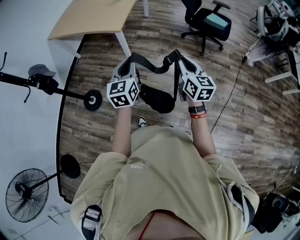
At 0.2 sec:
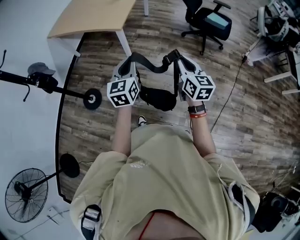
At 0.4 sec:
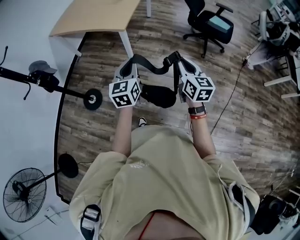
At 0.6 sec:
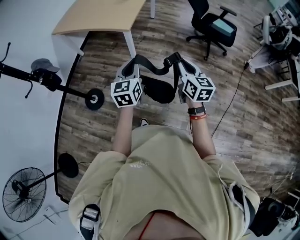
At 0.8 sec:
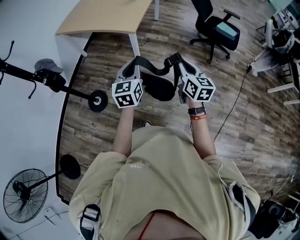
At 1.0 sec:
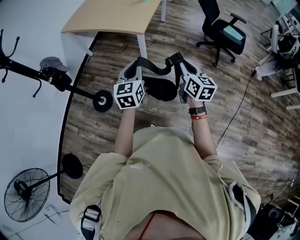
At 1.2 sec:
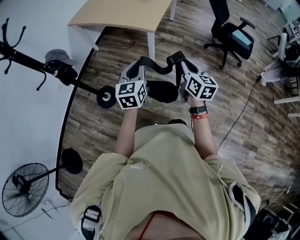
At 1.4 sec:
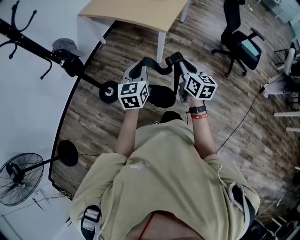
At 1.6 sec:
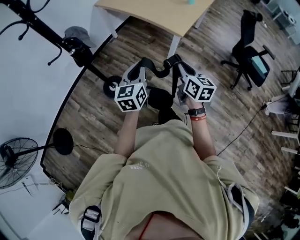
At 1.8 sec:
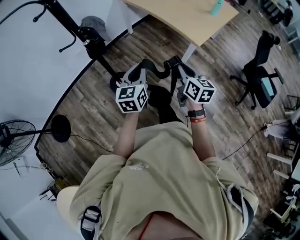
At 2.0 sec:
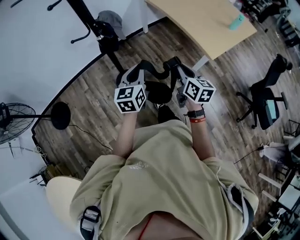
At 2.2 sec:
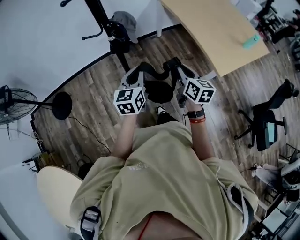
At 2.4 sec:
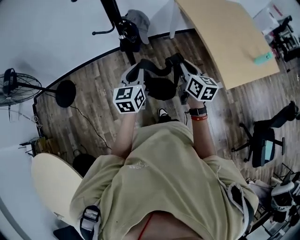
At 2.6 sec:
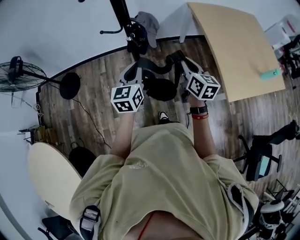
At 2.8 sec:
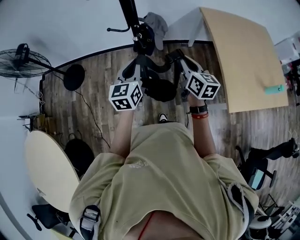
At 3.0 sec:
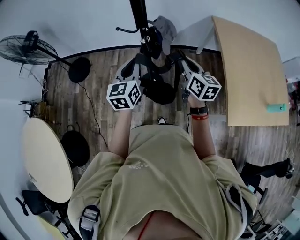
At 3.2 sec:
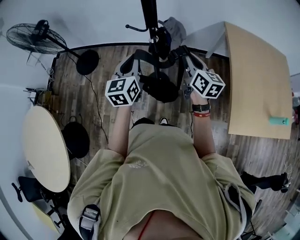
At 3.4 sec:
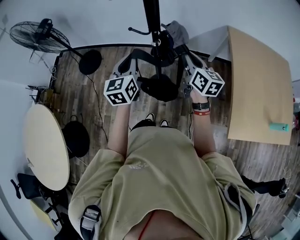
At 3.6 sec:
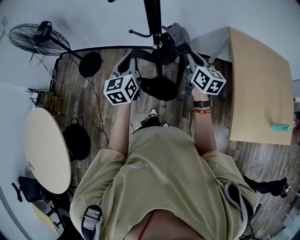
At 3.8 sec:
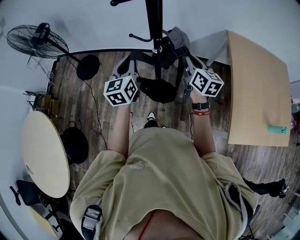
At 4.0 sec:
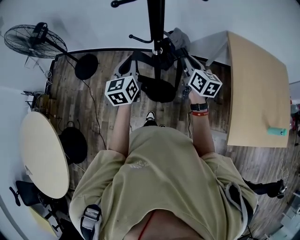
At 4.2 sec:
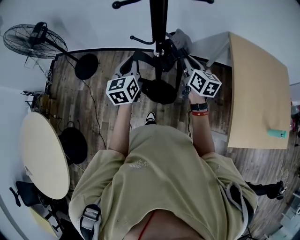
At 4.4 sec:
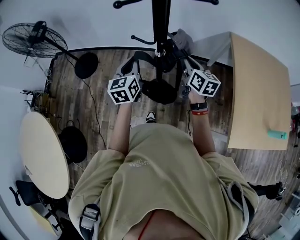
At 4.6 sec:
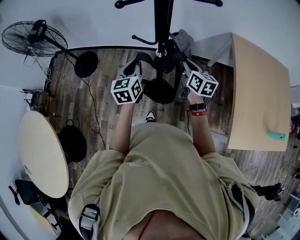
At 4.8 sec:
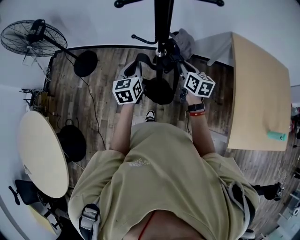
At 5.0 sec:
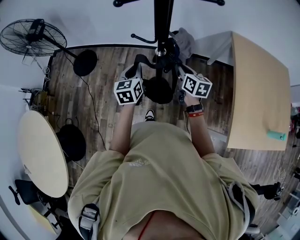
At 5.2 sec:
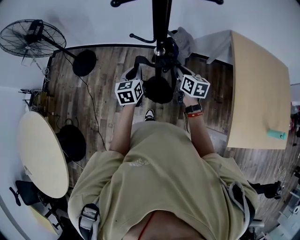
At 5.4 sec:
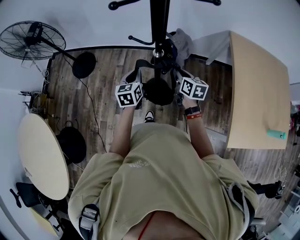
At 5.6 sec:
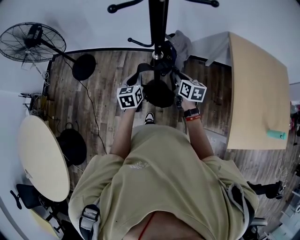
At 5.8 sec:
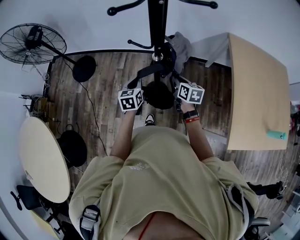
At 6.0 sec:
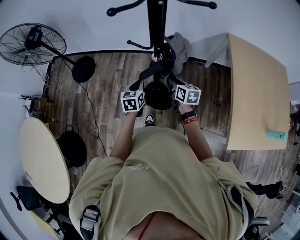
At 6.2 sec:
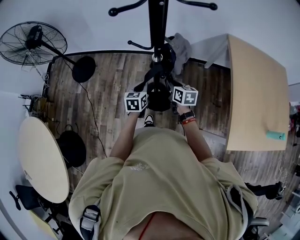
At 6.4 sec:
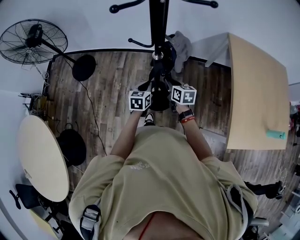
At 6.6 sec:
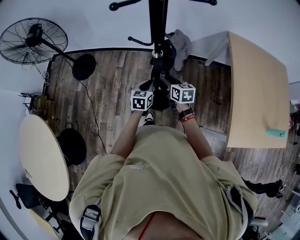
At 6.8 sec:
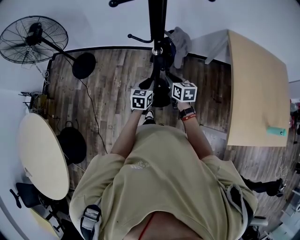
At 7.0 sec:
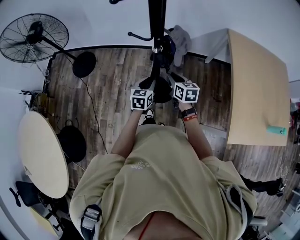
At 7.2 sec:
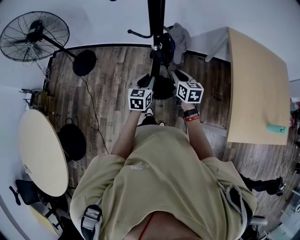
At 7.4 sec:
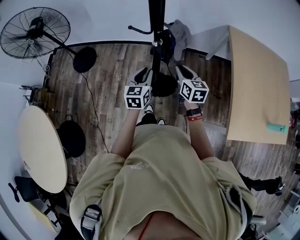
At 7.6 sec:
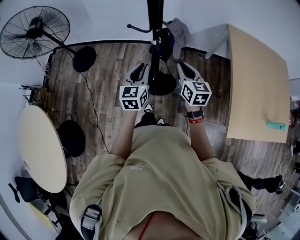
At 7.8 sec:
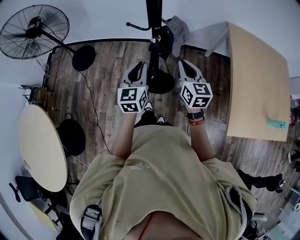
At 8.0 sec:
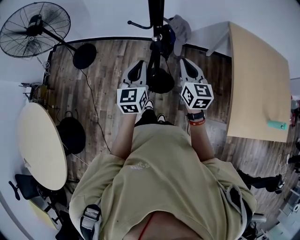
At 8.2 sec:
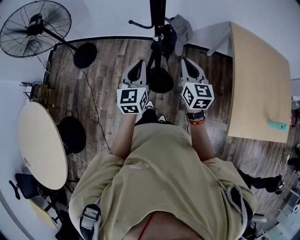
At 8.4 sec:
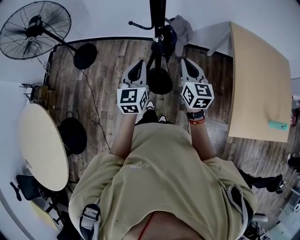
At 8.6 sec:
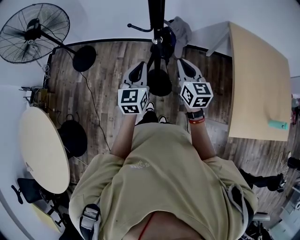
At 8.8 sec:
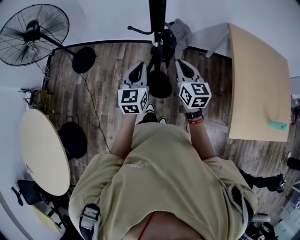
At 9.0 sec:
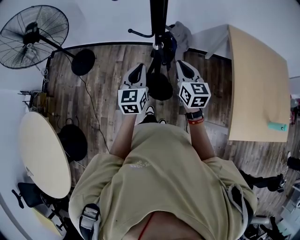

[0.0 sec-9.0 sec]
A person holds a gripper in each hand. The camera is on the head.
0.0 sec to 1.6 sec: The right gripper goes about 40 cm to the left and forward, and swivels roughly 20 degrees, while the left gripper moves to the left, roughly 35 cm, and rotates roughly 20 degrees.
1.6 sec to 3.0 sec: The left gripper moves some 35 cm, and rotates some 60 degrees. The right gripper moves some 50 cm, and turns by roughly 60 degrees.
3.0 sec to 4.4 sec: The right gripper goes roughly 15 cm forward; the left gripper travels forward and to the left by some 15 cm.
4.4 sec to 6.0 sec: The grippers both shift downward by about 15 cm.
6.0 sec to 7.6 sec: The grippers both shift upward and backward by approximately 15 cm. The right gripper changes its angle by roughly 20 degrees.
7.6 sec to 9.0 sec: The right gripper changes place by about 5 cm.

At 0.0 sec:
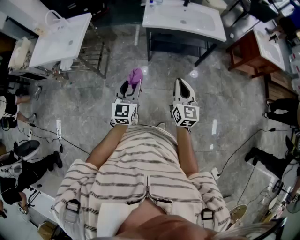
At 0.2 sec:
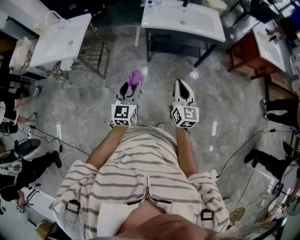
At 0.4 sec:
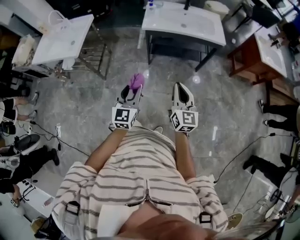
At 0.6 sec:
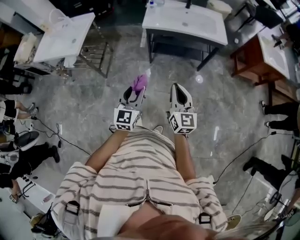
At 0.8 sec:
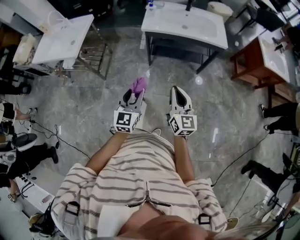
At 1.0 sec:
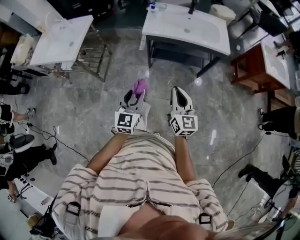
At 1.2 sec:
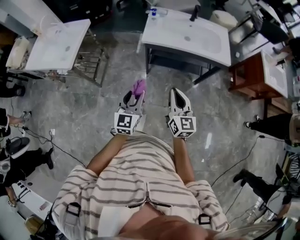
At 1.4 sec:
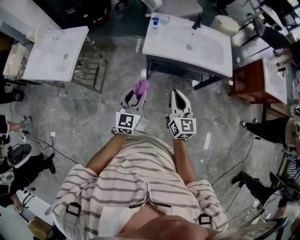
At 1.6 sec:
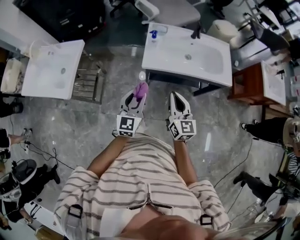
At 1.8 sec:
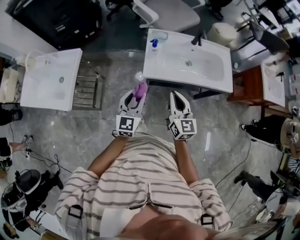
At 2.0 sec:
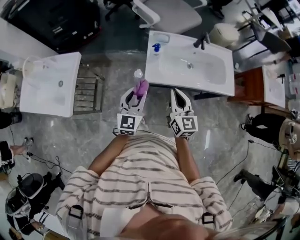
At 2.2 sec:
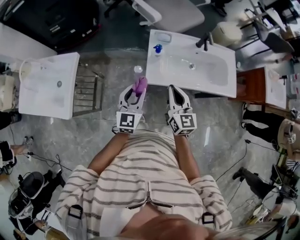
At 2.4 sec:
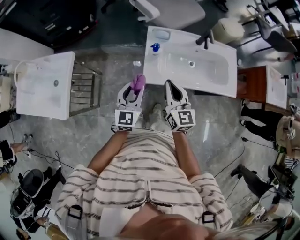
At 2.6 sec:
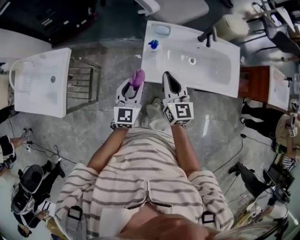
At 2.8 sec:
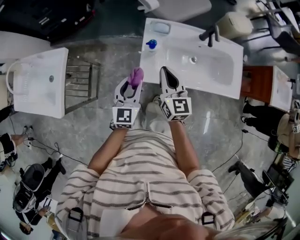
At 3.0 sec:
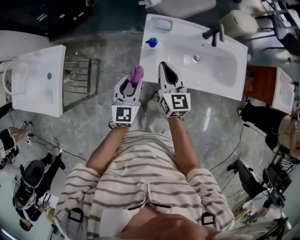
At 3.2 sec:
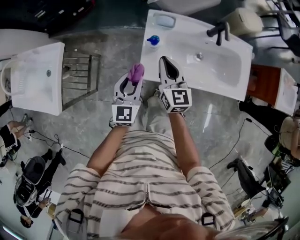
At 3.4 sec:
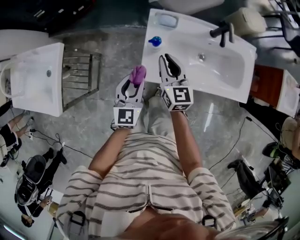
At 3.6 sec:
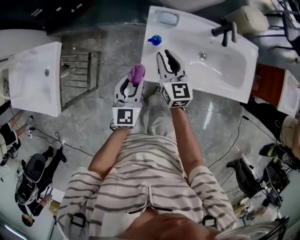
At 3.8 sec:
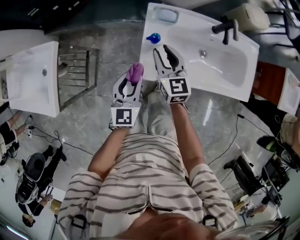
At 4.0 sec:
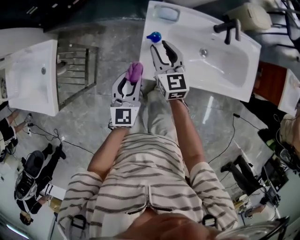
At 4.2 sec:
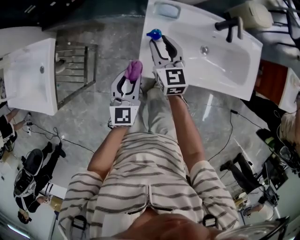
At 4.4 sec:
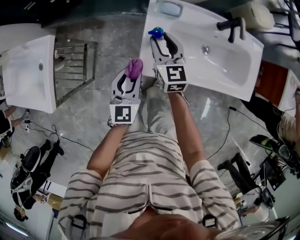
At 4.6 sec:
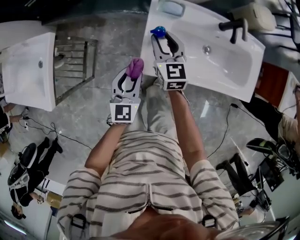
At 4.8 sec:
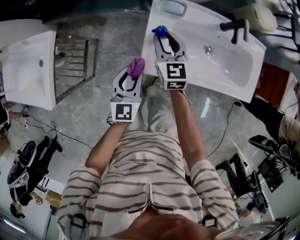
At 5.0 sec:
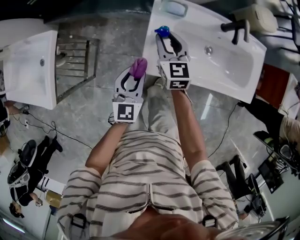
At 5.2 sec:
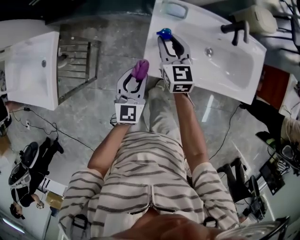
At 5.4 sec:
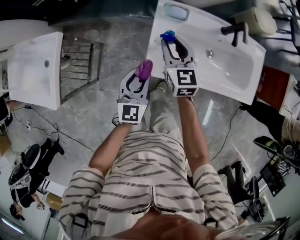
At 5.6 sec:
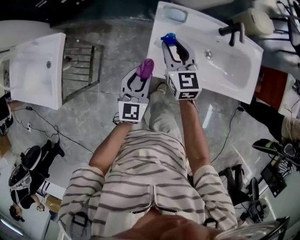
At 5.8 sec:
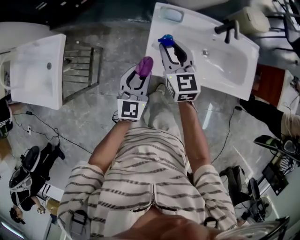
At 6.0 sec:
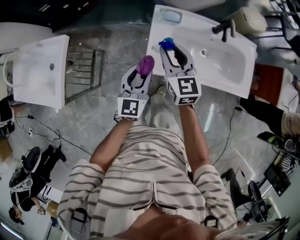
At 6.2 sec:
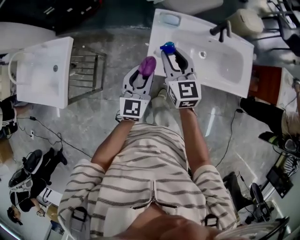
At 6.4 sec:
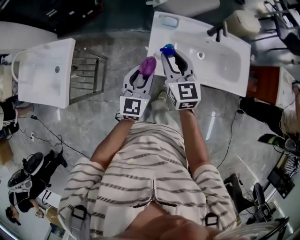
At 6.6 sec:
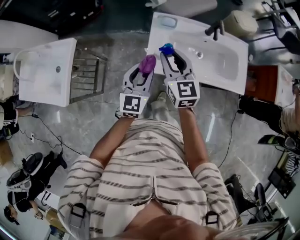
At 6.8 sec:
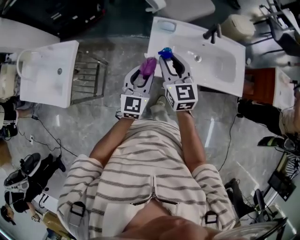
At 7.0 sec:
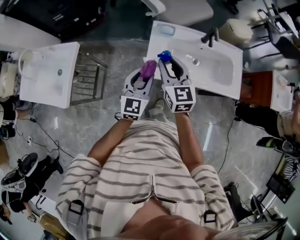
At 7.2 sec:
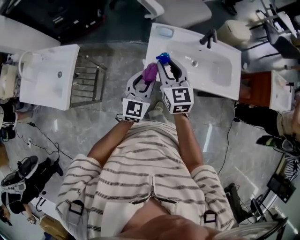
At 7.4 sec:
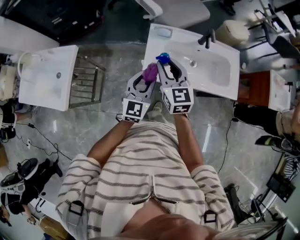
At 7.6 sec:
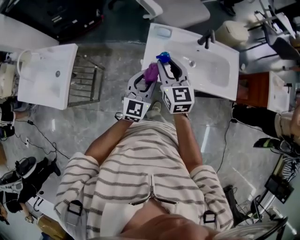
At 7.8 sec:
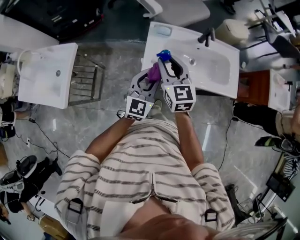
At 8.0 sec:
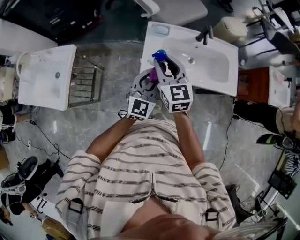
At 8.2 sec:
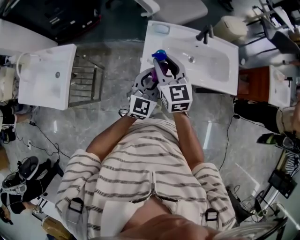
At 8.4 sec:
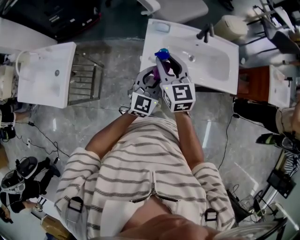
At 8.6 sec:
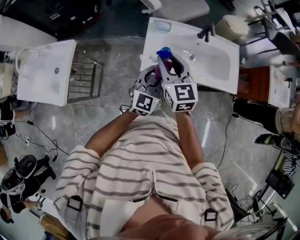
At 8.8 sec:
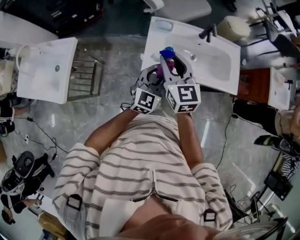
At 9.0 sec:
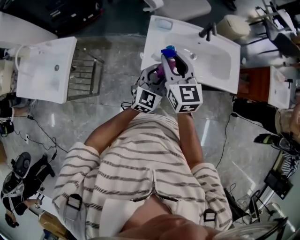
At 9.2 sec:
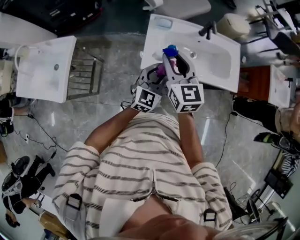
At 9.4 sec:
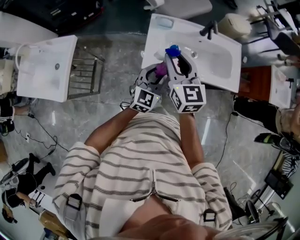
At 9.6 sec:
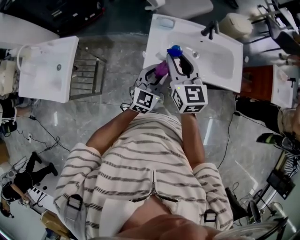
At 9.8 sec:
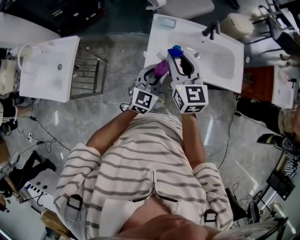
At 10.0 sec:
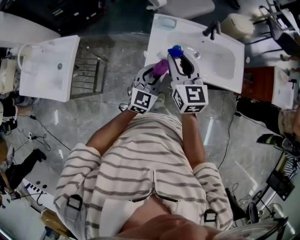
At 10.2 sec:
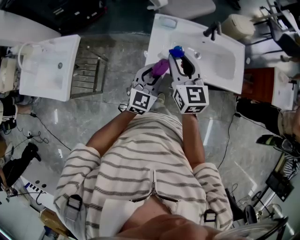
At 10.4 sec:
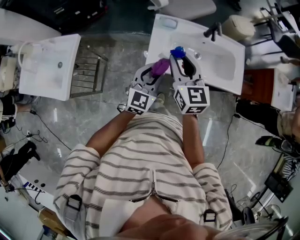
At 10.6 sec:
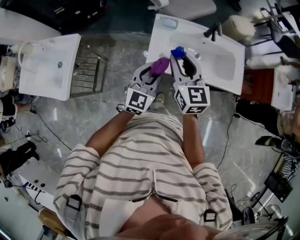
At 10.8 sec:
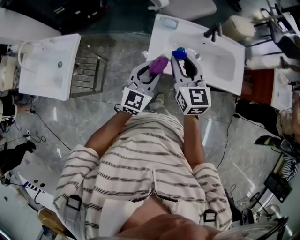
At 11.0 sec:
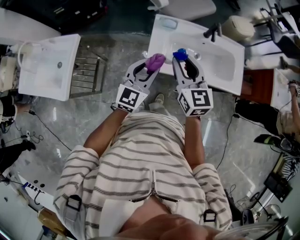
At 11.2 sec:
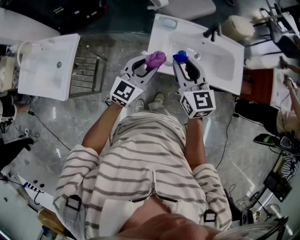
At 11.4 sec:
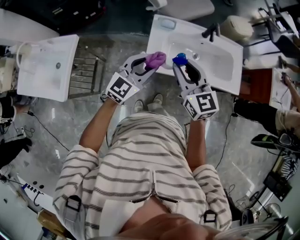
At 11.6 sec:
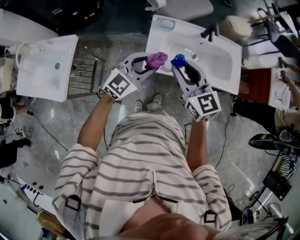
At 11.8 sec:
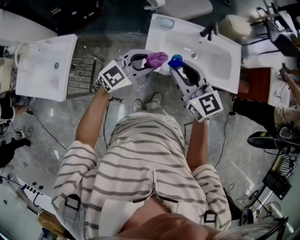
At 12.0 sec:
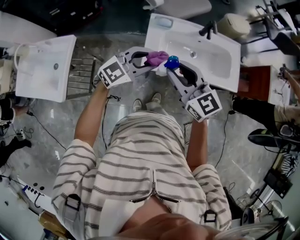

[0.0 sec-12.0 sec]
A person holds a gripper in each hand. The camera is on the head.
0.0 sec to 1.6 sec: The two grippers go approximately 30 cm forward.
1.6 sec to 3.0 sec: Both grippers travel together forward, approximately 25 cm.
3.0 sec to 4.4 sec: The left gripper travels downward by roughly 5 cm. Meanwhile the right gripper moves forward and downward, approximately 10 cm, and opens.
4.4 sec to 6.0 sec: The left gripper travels upward by roughly 5 cm, while the right gripper travels upward and backward by roughly 10 cm.
6.0 sec to 7.6 sec: The left gripper goes some 5 cm upward. The right gripper shifts approximately 10 cm upward and backward.
7.6 sec to 9.0 sec: The left gripper is displaced to the right by roughly 5 cm.
9.0 sec to 10.4 sec: There are only small adjustments of the grippers.
10.4 sec to 12.0 sec: The left gripper swivels about 40 degrees. The right gripper heads backward, covering approximately 5 cm, and turns by some 20 degrees.

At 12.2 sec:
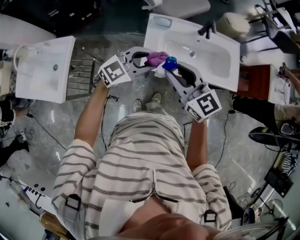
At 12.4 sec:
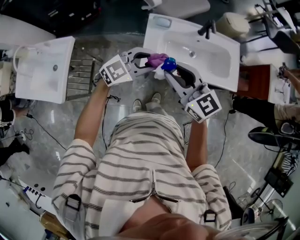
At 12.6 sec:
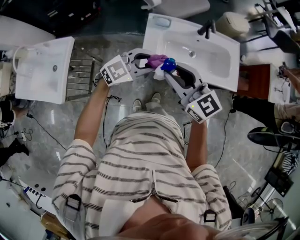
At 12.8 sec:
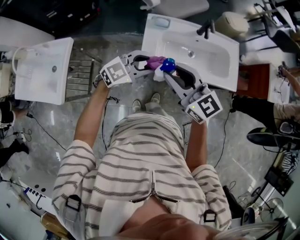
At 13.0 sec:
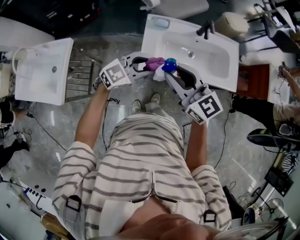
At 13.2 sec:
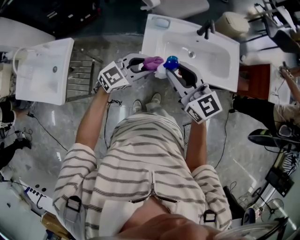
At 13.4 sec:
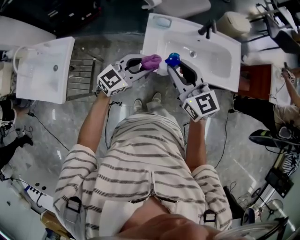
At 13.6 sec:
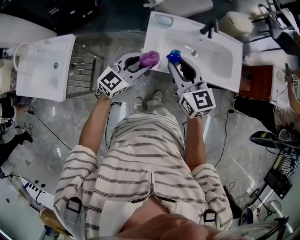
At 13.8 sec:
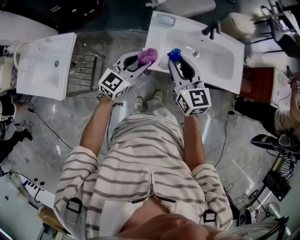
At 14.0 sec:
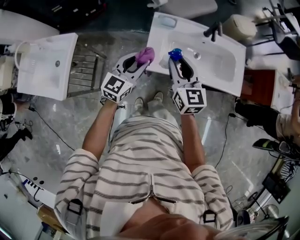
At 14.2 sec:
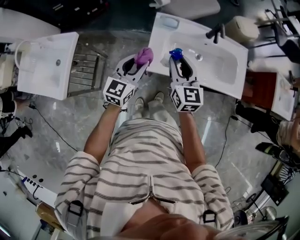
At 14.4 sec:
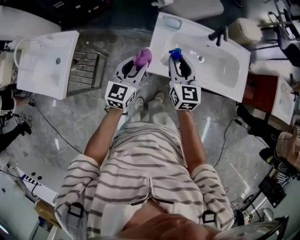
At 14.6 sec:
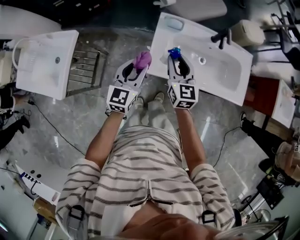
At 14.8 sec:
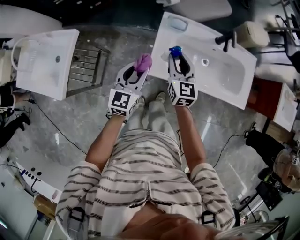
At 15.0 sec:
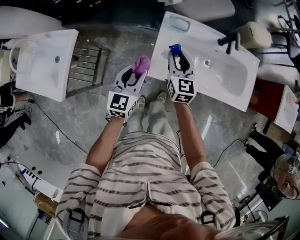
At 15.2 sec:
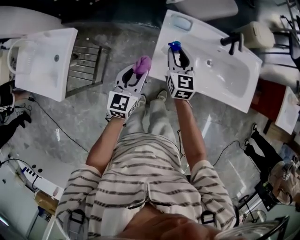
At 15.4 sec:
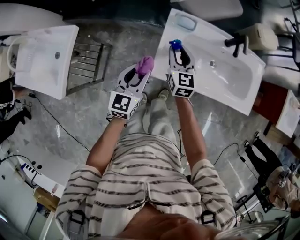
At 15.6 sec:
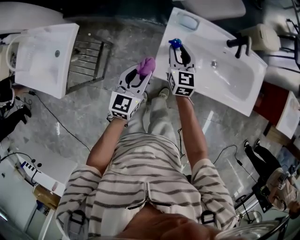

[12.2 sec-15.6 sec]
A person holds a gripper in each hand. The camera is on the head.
12.2 sec to 13.8 sec: The right gripper heads forward, covering about 5 cm, while the left gripper changes place by about 5 cm, and rotates some 30 degrees.
13.8 sec to 15.6 sec: The right gripper shifts roughly 25 cm downward and forward. Meanwhile the left gripper travels downward and to the left by approximately 10 cm, and rotates approximately 30 degrees.
